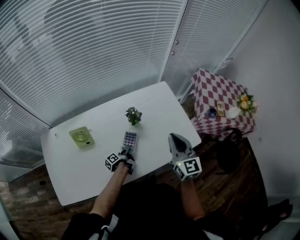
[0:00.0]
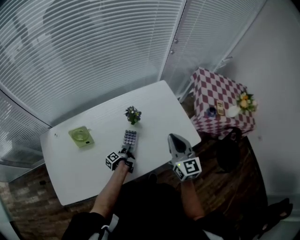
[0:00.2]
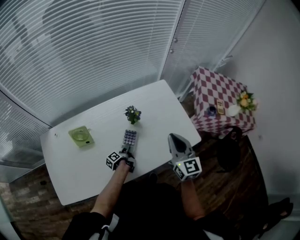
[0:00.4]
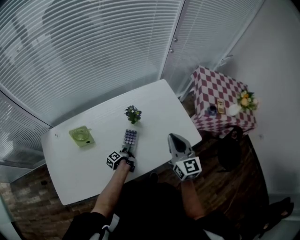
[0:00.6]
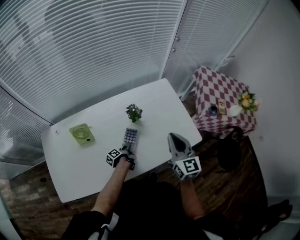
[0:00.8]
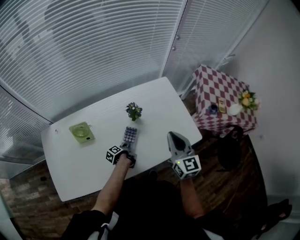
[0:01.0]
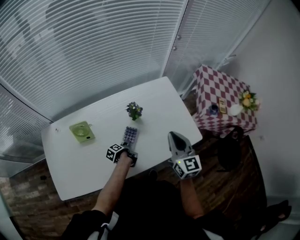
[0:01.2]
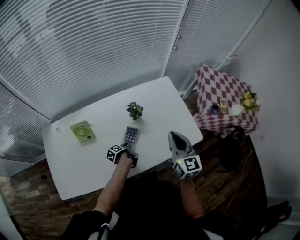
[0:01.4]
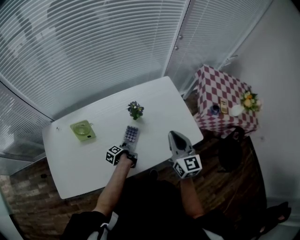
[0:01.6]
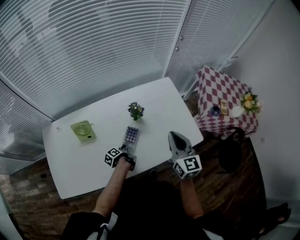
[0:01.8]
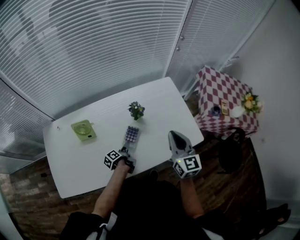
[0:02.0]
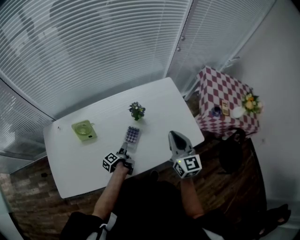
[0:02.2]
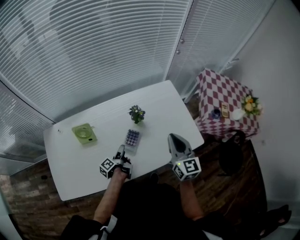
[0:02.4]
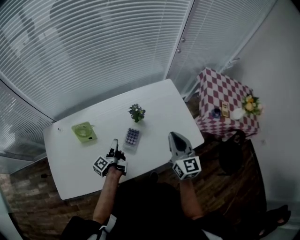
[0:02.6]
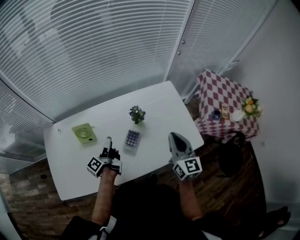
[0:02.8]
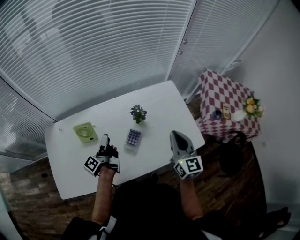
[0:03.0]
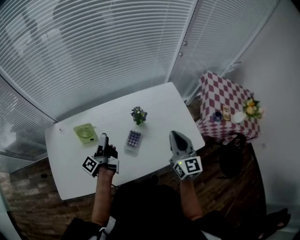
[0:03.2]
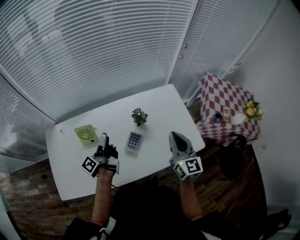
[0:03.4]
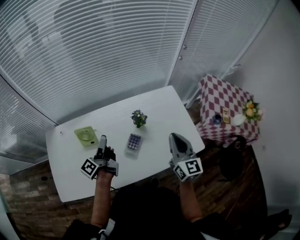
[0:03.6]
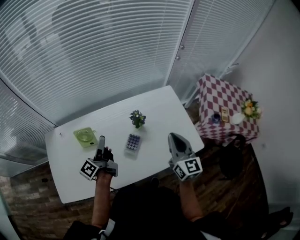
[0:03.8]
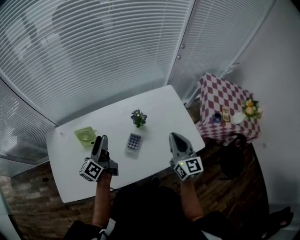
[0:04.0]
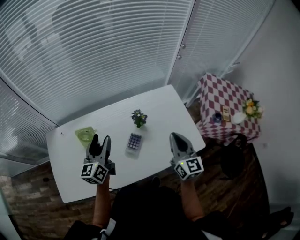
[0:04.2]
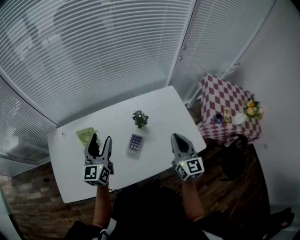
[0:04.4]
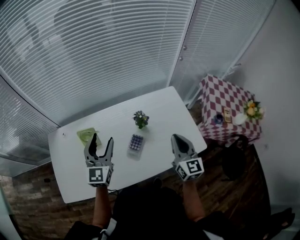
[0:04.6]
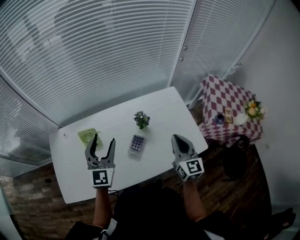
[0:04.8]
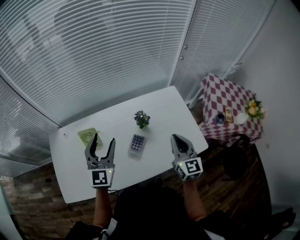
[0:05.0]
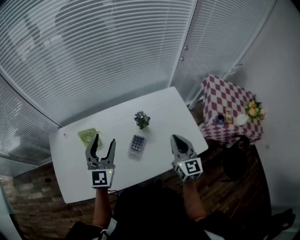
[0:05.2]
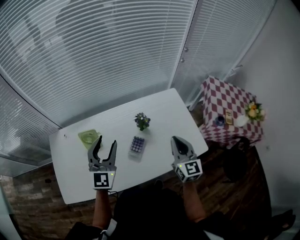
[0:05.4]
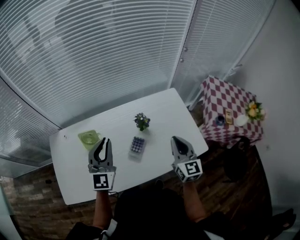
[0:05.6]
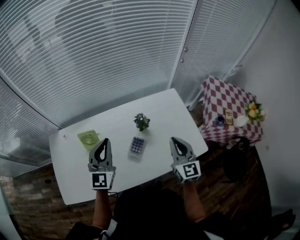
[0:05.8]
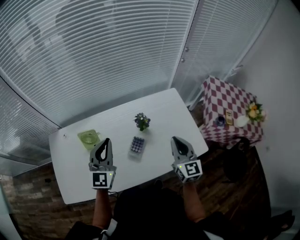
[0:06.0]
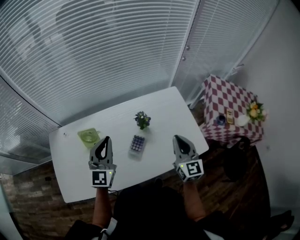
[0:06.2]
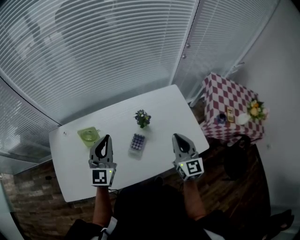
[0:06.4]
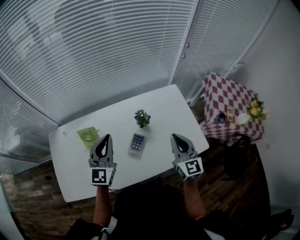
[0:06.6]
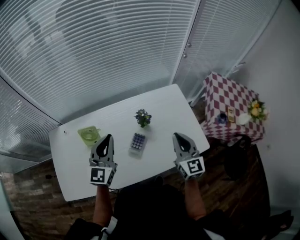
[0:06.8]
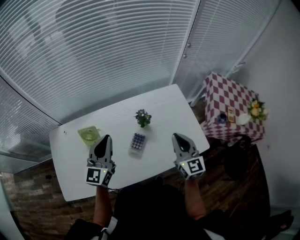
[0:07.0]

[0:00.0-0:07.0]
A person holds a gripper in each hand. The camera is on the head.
0:00.0 to 0:01.4: The left gripper swivels about 20 degrees, and opens up.
0:01.4 to 0:02.8: The left gripper shifts about 20 cm upward and to the left, and angles its fingers upward, by roughly 40 degrees.
0:02.8 to 0:04.2: The left gripper goes some 15 cm upward, and rolls clockwise, seen from behind, by roughly 60 degrees.
0:04.2 to 0:05.6: The left gripper heads upward, covering approximately 5 cm, turns by some 40 degrees, and closes its fingers.
0:05.6 to 0:07.0: The grippers move only a little.

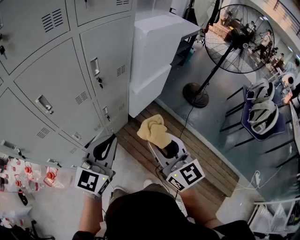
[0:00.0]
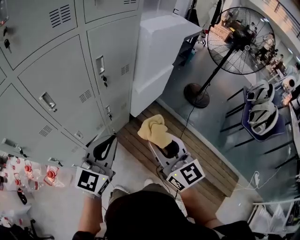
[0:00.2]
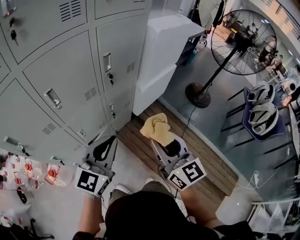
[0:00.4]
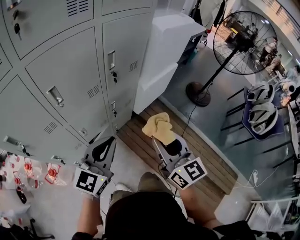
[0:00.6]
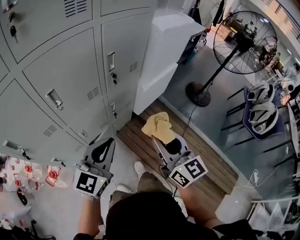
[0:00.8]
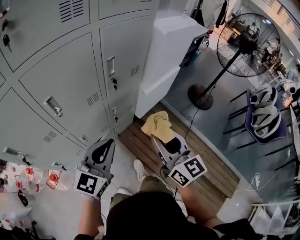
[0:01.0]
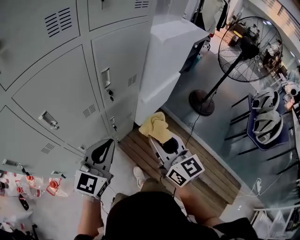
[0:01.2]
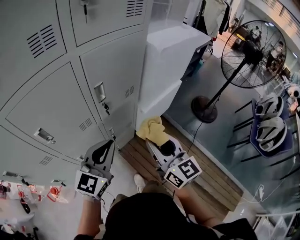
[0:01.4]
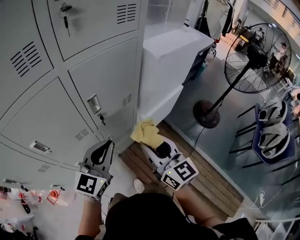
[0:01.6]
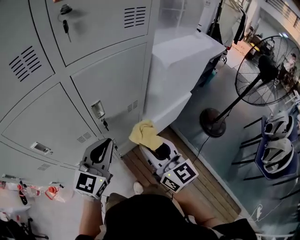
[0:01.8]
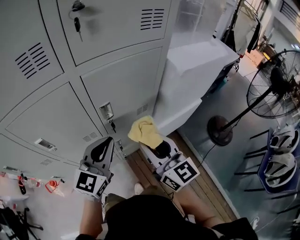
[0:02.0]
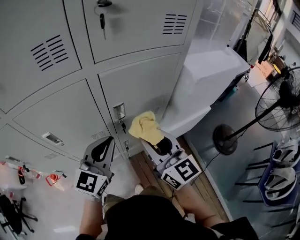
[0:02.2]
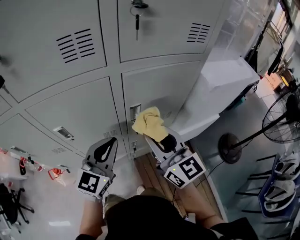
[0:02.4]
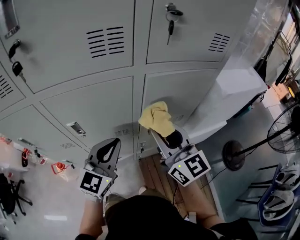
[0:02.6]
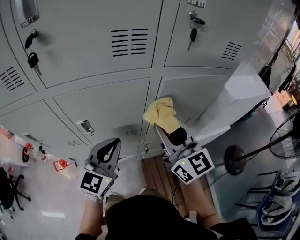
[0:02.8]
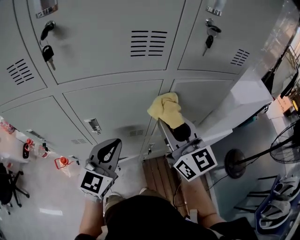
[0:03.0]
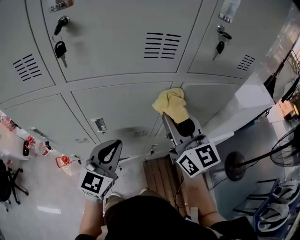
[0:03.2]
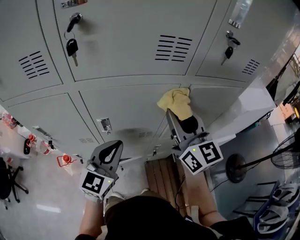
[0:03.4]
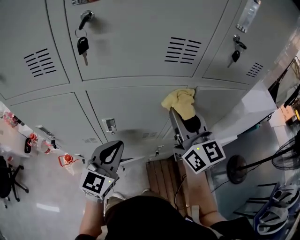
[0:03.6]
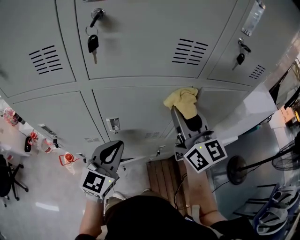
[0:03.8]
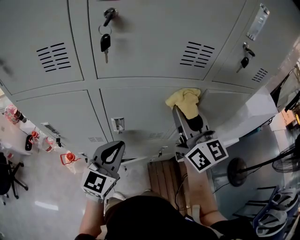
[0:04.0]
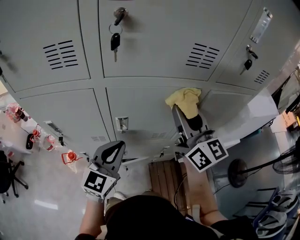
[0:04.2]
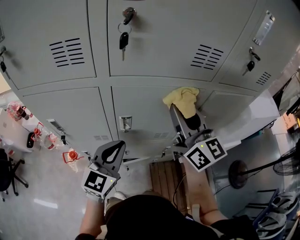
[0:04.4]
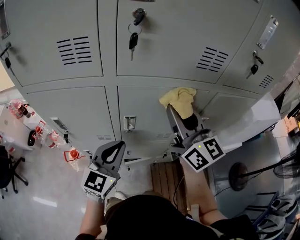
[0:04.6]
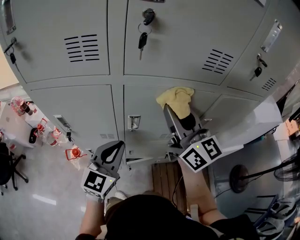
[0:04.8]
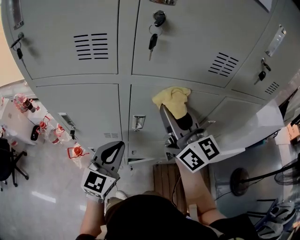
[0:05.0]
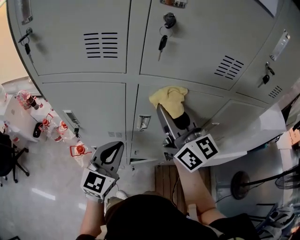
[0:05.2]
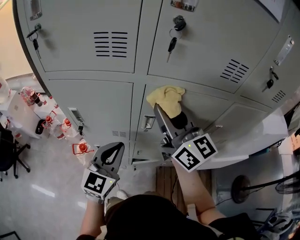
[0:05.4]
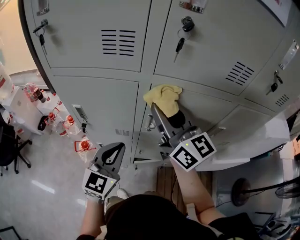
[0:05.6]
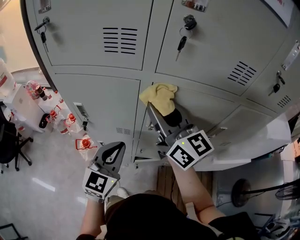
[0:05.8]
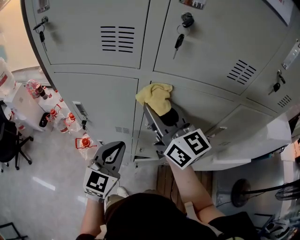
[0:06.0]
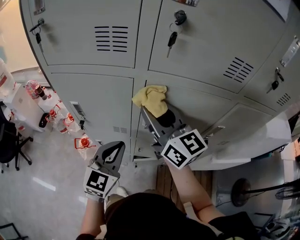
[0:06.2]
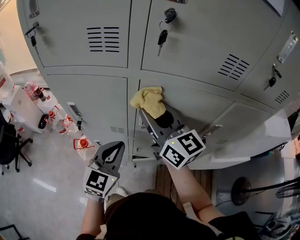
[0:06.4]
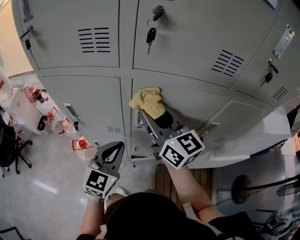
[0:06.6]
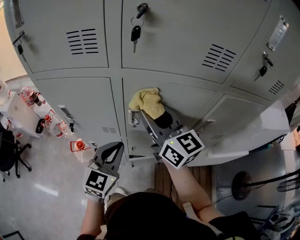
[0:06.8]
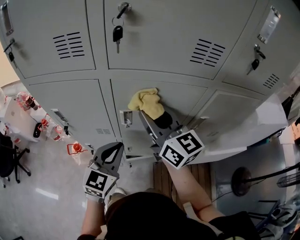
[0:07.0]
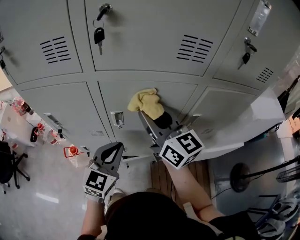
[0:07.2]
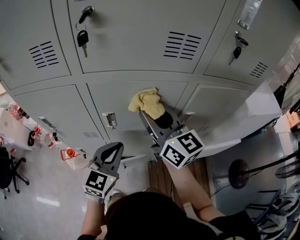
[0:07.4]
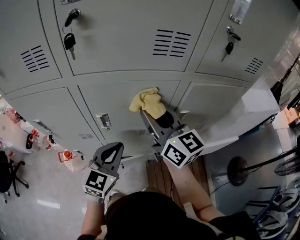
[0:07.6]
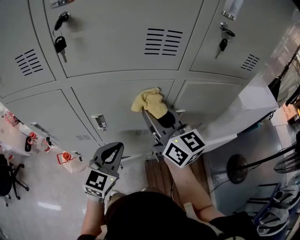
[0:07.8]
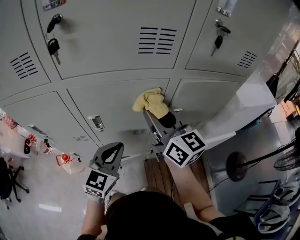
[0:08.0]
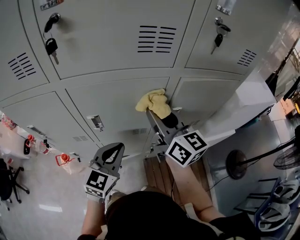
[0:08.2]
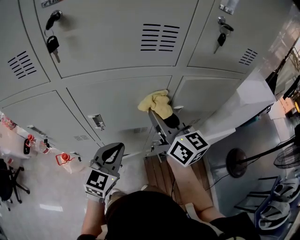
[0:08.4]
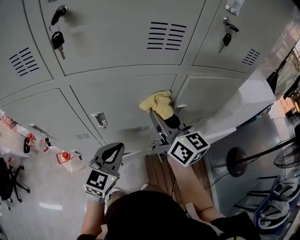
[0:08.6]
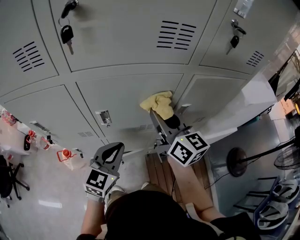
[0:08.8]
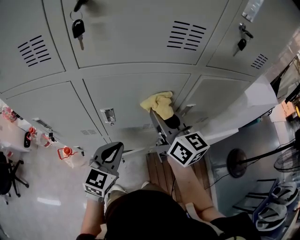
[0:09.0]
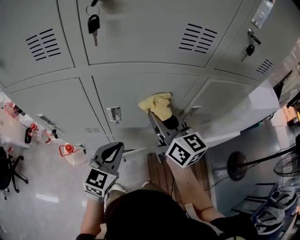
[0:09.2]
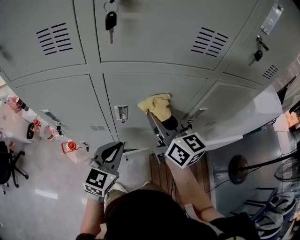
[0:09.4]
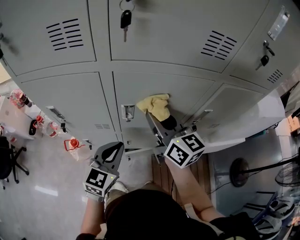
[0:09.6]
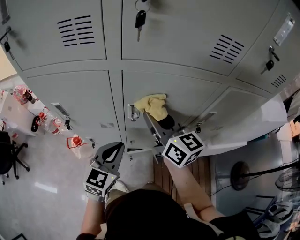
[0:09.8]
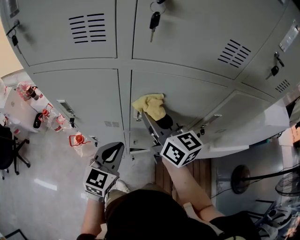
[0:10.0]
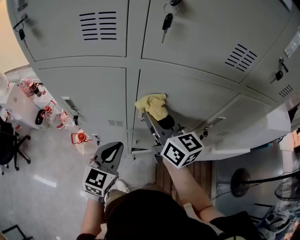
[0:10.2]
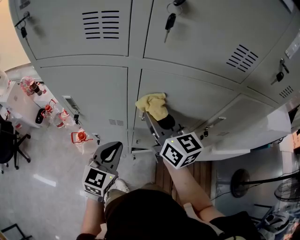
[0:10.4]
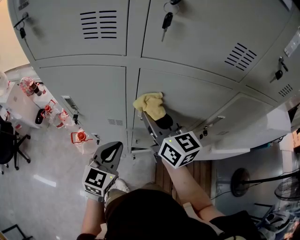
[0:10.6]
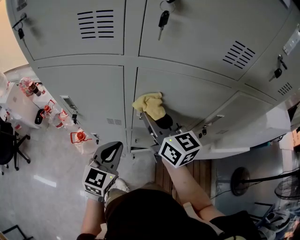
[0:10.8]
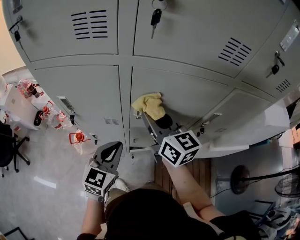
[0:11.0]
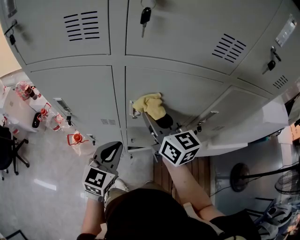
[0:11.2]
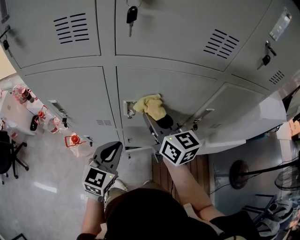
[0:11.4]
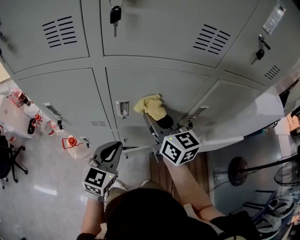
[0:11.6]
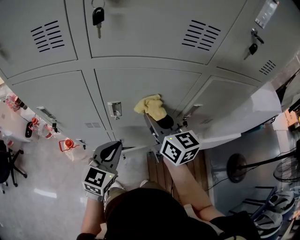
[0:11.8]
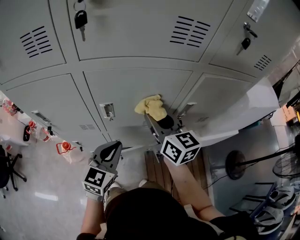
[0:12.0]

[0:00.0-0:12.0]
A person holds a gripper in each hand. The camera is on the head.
0:00.0 to 0:01.6: Both grippers travel together forward, some 20 cm.
0:01.6 to 0:03.0: The right gripper shifts by roughly 25 cm, and changes its angle by some 30 degrees. Meanwhile the left gripper shifts by approximately 15 cm, and rotates approximately 30 degrees.
0:03.0 to 0:04.4: The two grippers go about 10 cm to the left.
0:04.4 to 0:06.0: The right gripper shifts about 15 cm to the left, and turns by approximately 20 degrees, while the left gripper moves to the left, approximately 10 cm.
0:06.0 to 0:07.6: The two grippers go some 15 cm to the right.
0:07.6 to 0:09.0: The grippers move only a little.
0:09.0 to 0:10.4: The grippers both shift to the left by approximately 15 cm.
0:10.4 to 0:12.0: The grippers both shift to the right by approximately 10 cm.

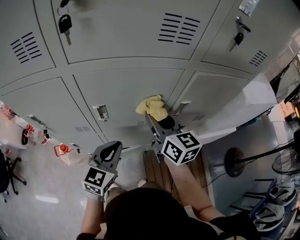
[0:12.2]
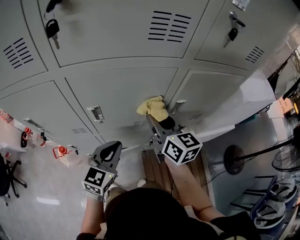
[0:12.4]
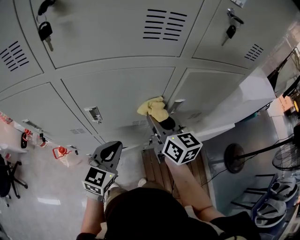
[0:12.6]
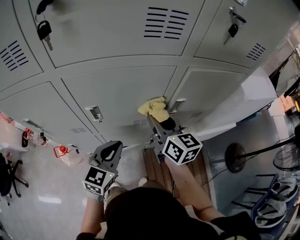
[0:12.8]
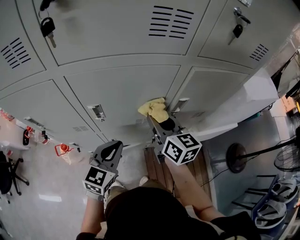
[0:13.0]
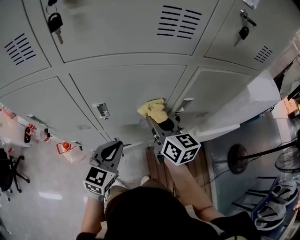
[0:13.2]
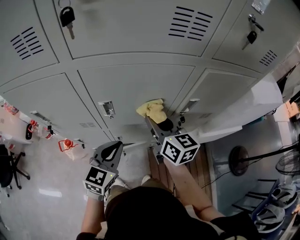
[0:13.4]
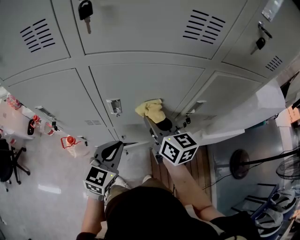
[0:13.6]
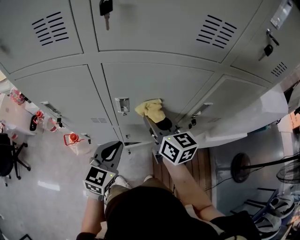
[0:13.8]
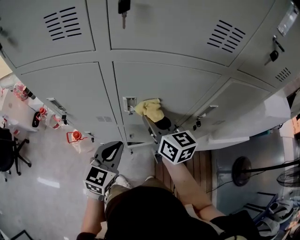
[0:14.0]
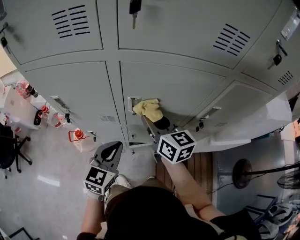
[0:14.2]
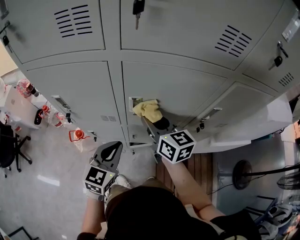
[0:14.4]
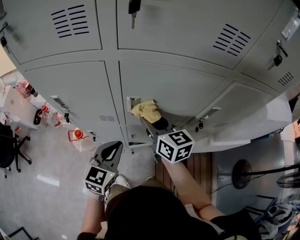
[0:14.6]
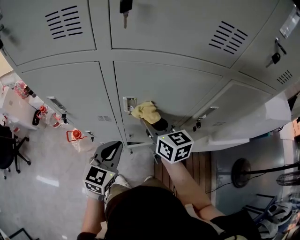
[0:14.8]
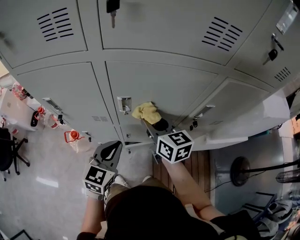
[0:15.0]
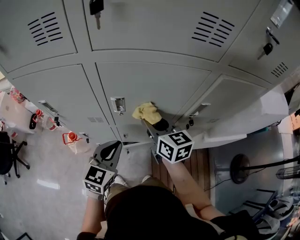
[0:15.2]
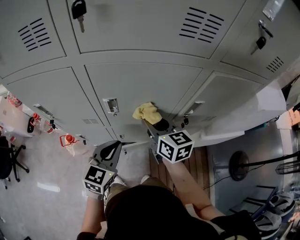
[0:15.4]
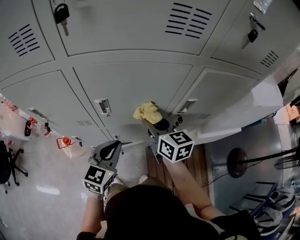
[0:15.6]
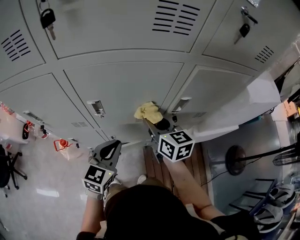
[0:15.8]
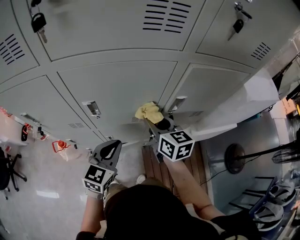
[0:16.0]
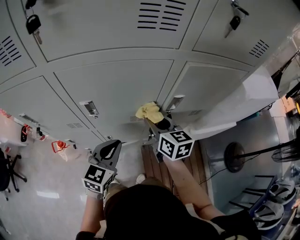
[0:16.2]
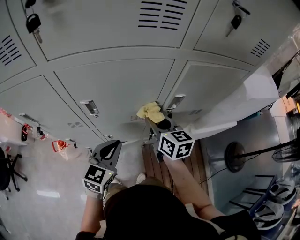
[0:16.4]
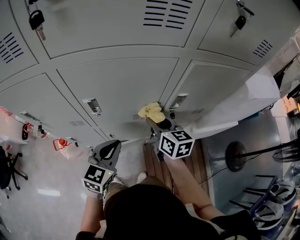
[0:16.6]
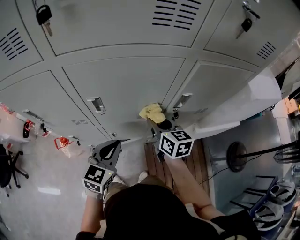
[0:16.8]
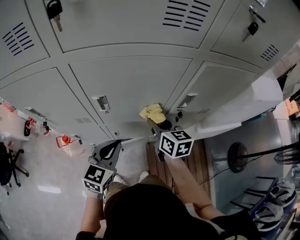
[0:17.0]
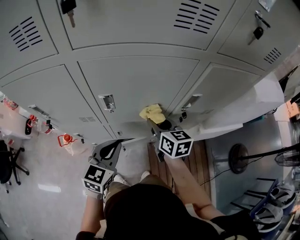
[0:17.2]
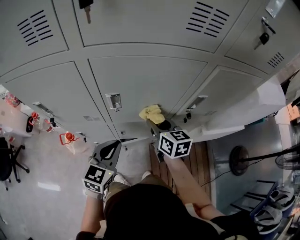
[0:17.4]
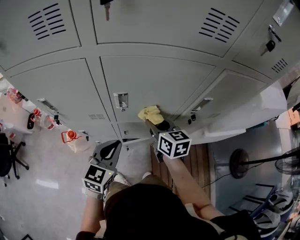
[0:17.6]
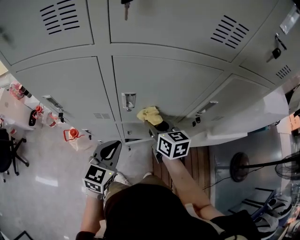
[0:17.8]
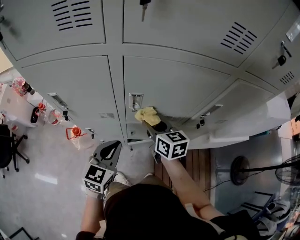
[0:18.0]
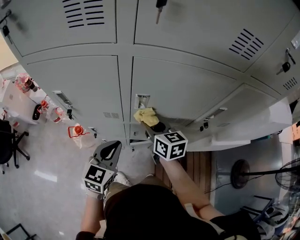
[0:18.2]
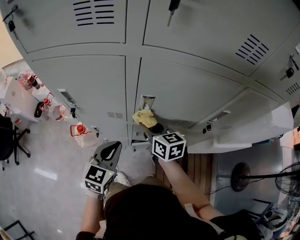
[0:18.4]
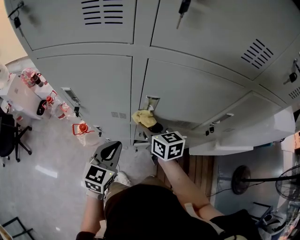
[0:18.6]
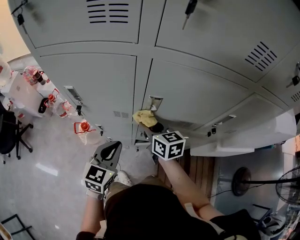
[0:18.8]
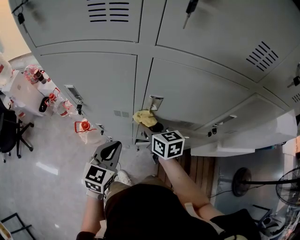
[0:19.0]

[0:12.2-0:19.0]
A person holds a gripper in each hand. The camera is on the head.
0:12.2 to 0:13.6: The right gripper shifts approximately 5 cm to the left.
0:15.0 to 0:16.2: Both grippers travel together to the right, approximately 10 cm.
0:16.2 to 0:17.6: Both grippers travel together to the left, approximately 10 cm.
0:17.6 to 0:19.0: Both grippers travel together to the left, roughly 10 cm.
